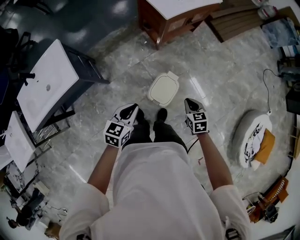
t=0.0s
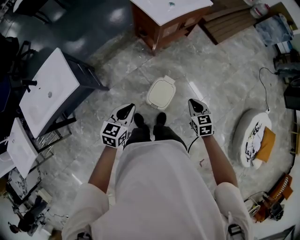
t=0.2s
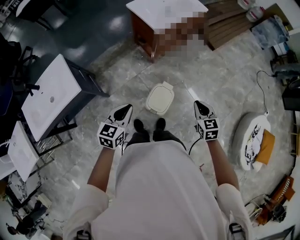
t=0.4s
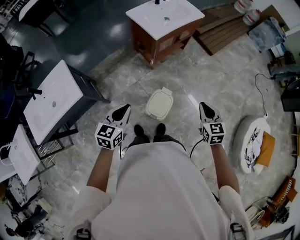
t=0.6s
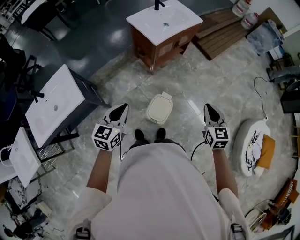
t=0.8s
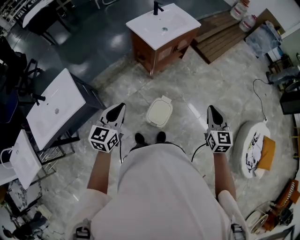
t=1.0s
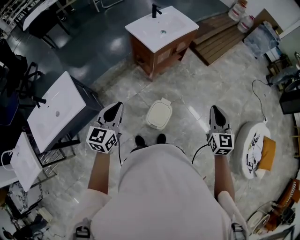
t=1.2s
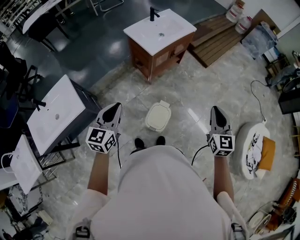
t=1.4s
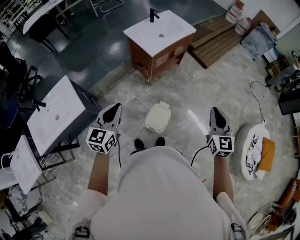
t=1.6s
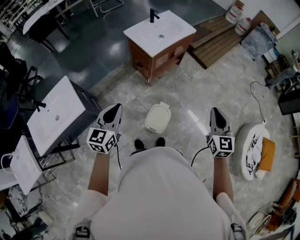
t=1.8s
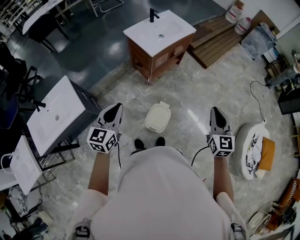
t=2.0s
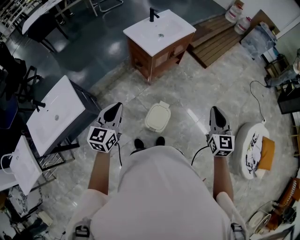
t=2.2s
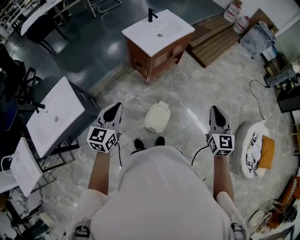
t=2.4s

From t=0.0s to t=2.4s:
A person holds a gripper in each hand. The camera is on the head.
From t=0.0s to t=1.2s: Both grippers travel together upward, approximately 25 cm. The right gripper tips its fingers upward by about 30 degrees. Meanwhile the left gripper changes its angle by approximately 20 degrees.
From t=1.2s to t=2.4s: The grippers move only a little.

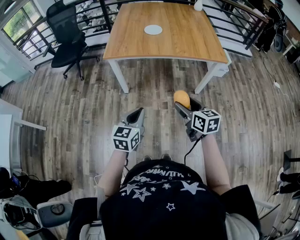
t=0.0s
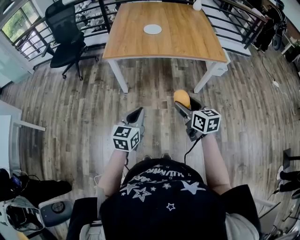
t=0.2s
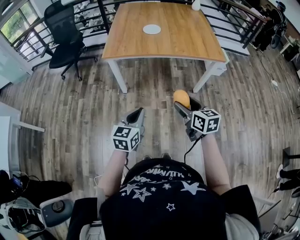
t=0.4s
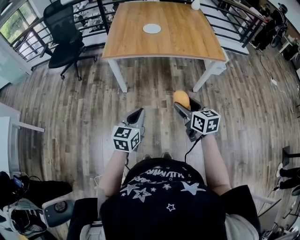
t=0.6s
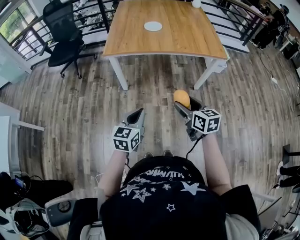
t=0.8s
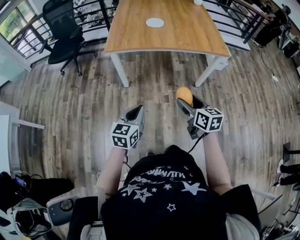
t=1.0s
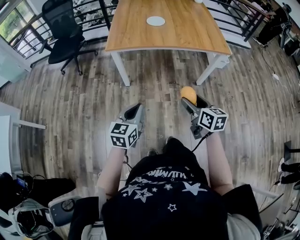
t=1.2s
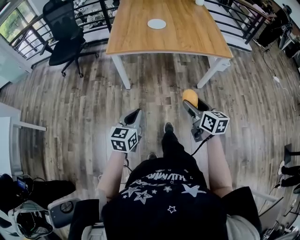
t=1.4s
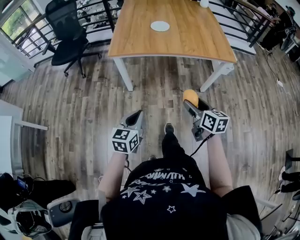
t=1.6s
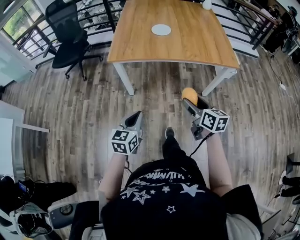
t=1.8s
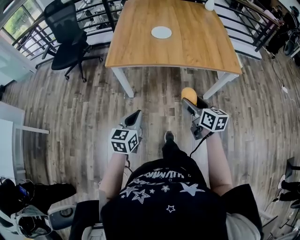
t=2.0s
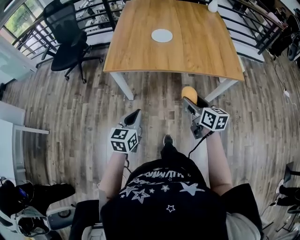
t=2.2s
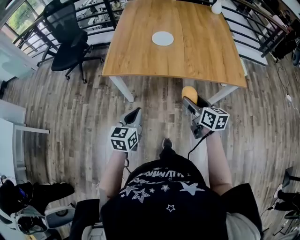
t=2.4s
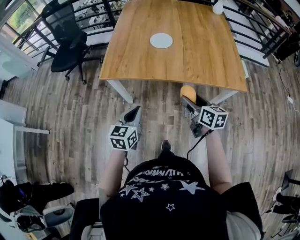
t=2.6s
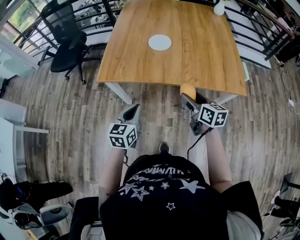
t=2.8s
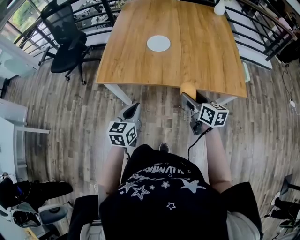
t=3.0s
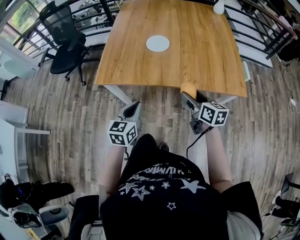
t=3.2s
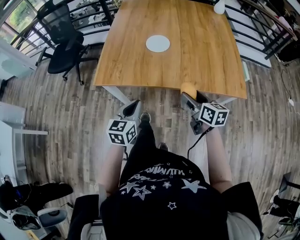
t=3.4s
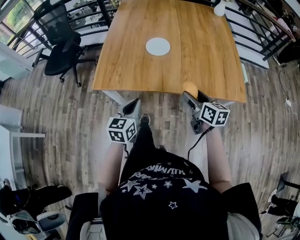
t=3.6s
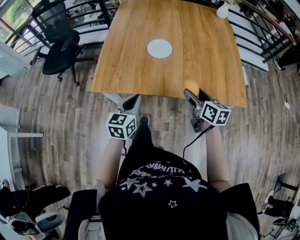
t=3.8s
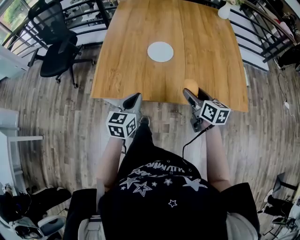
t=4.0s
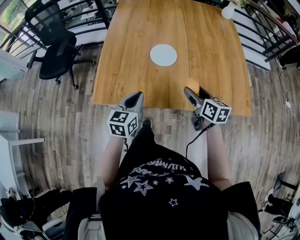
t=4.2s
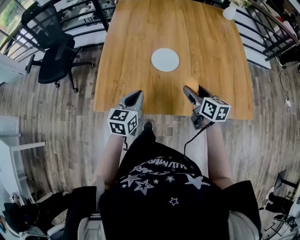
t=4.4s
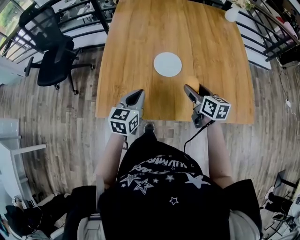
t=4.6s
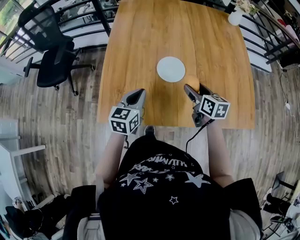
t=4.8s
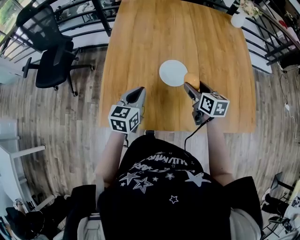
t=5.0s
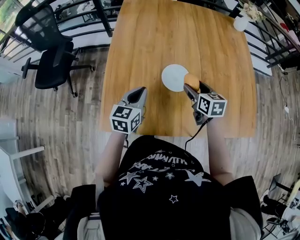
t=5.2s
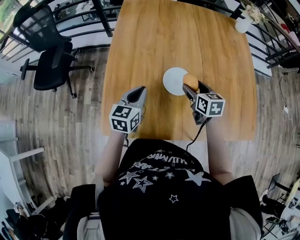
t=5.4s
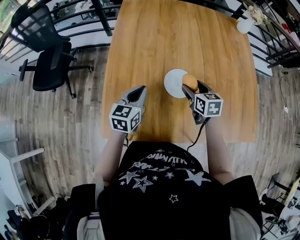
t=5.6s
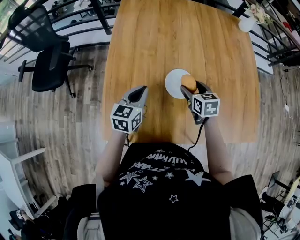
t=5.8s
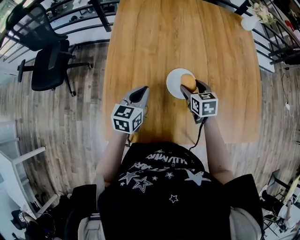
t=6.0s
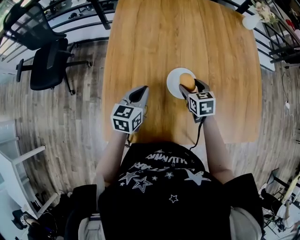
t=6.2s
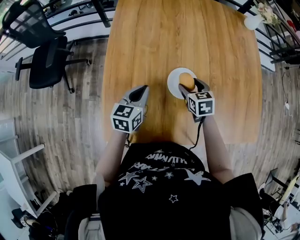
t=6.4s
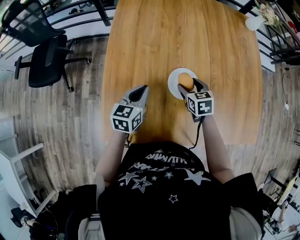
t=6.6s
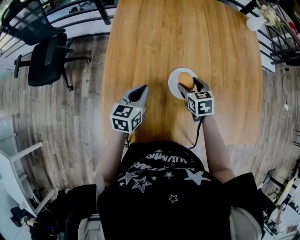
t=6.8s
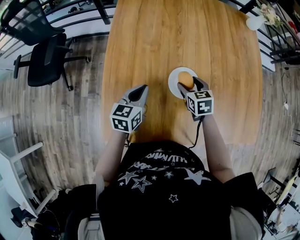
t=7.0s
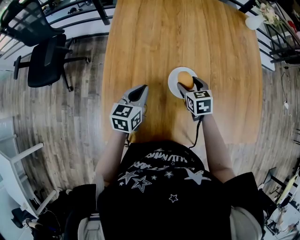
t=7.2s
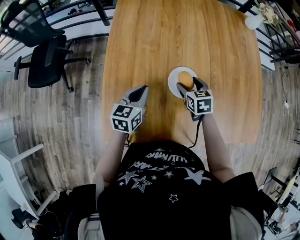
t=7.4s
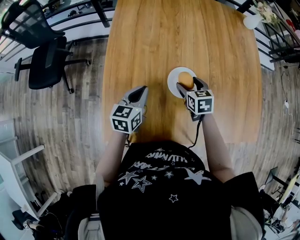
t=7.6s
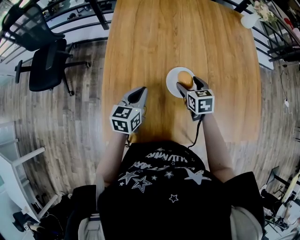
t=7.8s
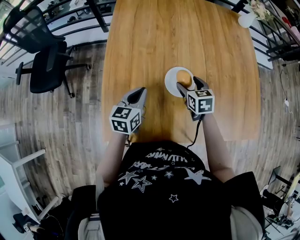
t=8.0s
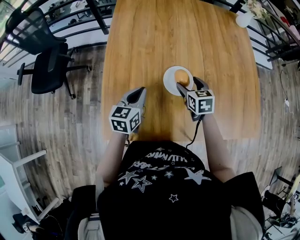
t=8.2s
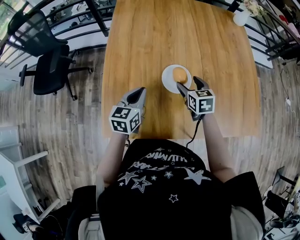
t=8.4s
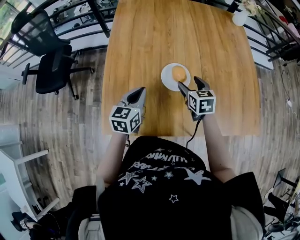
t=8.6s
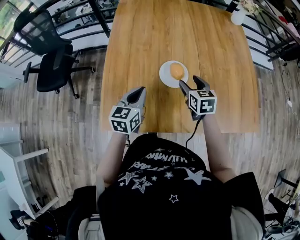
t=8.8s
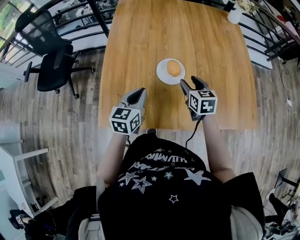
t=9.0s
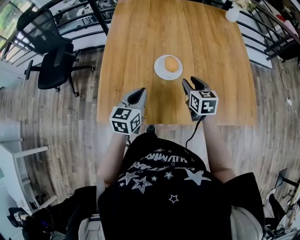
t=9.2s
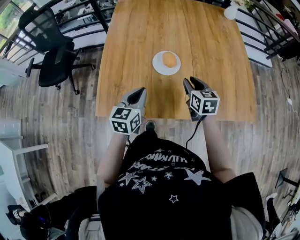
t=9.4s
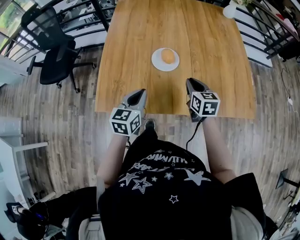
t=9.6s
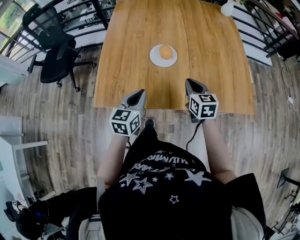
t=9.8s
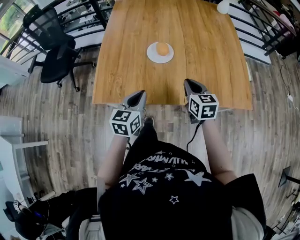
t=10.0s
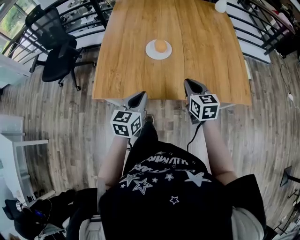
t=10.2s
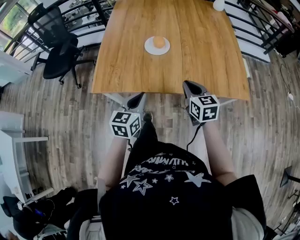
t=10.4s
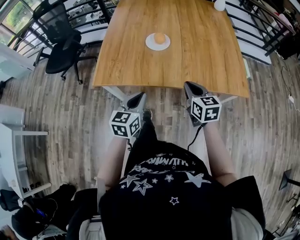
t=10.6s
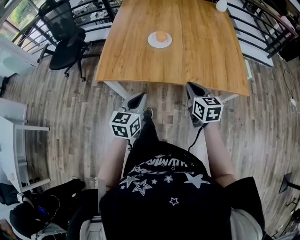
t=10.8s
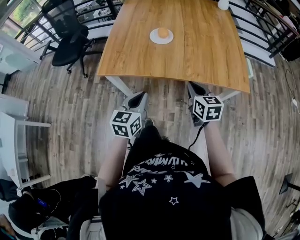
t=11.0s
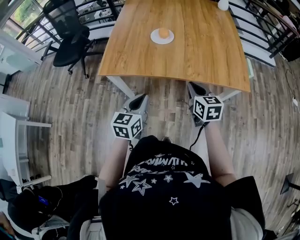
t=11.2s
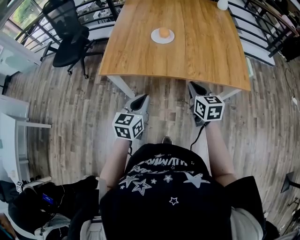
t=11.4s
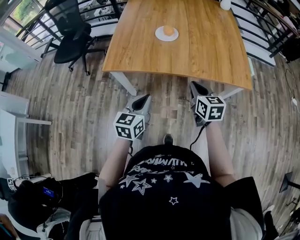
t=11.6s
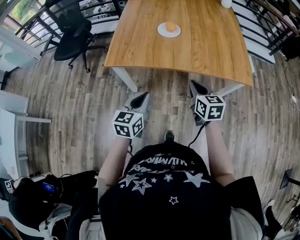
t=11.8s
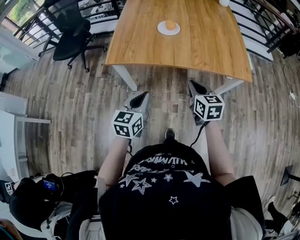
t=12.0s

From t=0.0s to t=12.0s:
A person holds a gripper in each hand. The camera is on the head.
From t=0.0s to t=1.6s: The left gripper heads to the left, covering approximately 5 cm.
From t=1.6s to t=3.0s: Both grippers travel together forward, approximately 30 cm.
From t=3.0s to t=4.4s: The two grippers go about 20 cm forward.
From t=4.4s to t=6.0s: The left gripper travels forward by approximately 20 cm. Meanwhile the right gripper goes about 20 cm forward, to the left and downward, and swivels some 30 degrees.
From t=6.0s to t=7.6s: The grippers stay close to where they were, moving slightly.
From t=7.6s to t=9.0s: The grippers both shift backward, upward and to the right by roughly 10 cm. The right gripper closes.
From t=9.0s to t=10.4s: The right gripper heads backward, covering some 20 cm, and closes its fingers. Meanwhile the left gripper goes roughly 20 cm backward and to the right.
From t=10.4s to t=12.0s: Both grippers travel together backward, about 15 cm.

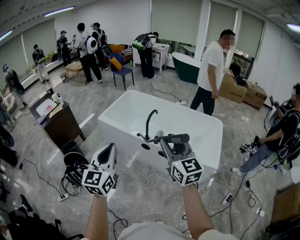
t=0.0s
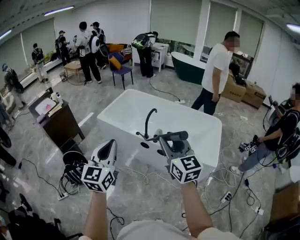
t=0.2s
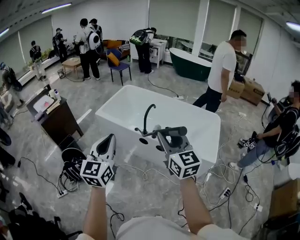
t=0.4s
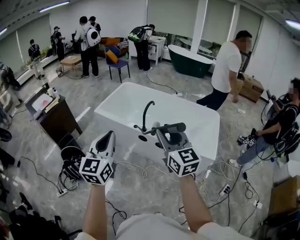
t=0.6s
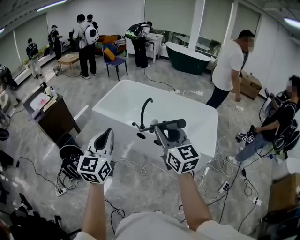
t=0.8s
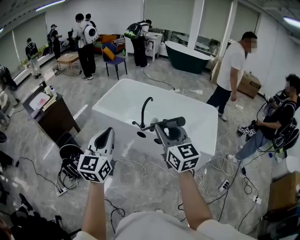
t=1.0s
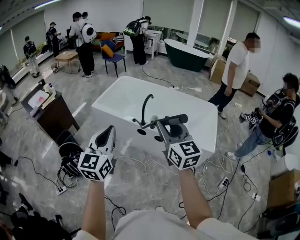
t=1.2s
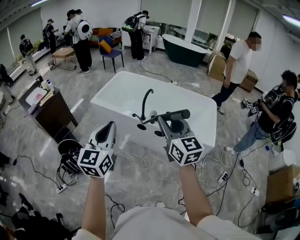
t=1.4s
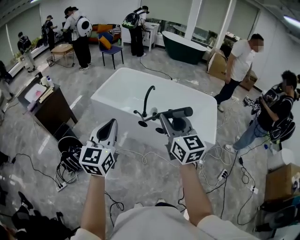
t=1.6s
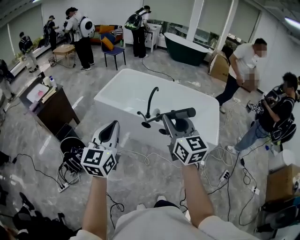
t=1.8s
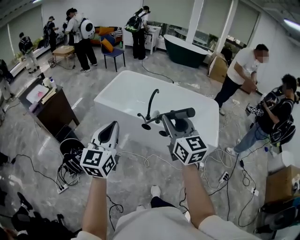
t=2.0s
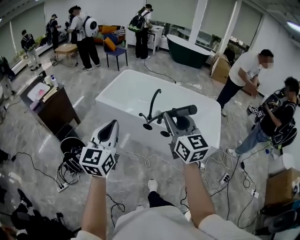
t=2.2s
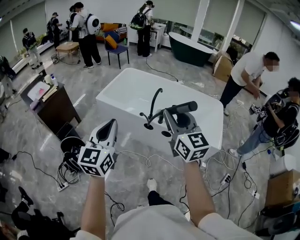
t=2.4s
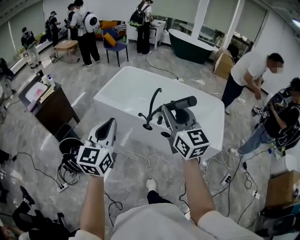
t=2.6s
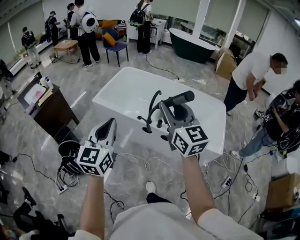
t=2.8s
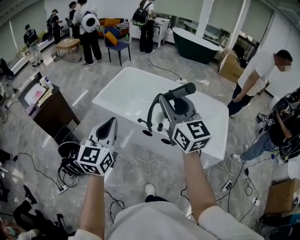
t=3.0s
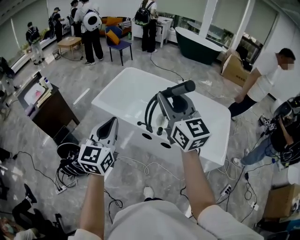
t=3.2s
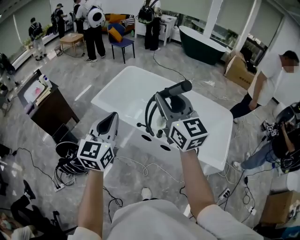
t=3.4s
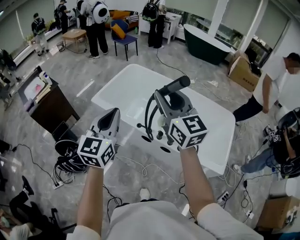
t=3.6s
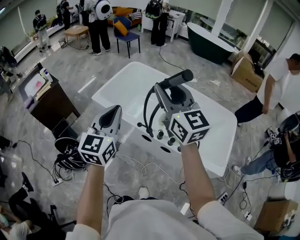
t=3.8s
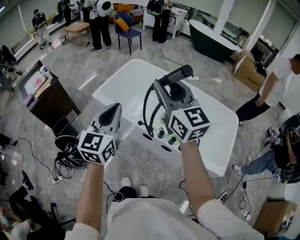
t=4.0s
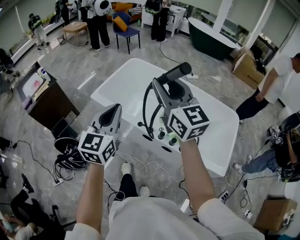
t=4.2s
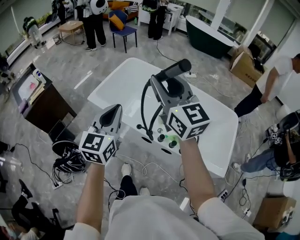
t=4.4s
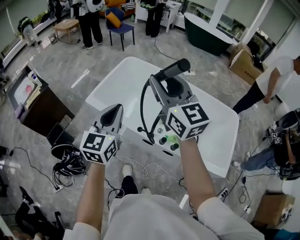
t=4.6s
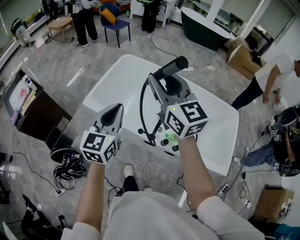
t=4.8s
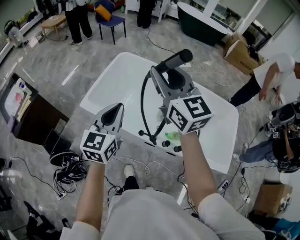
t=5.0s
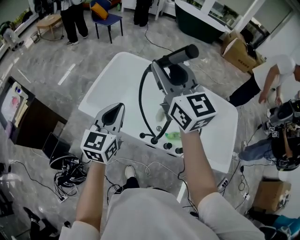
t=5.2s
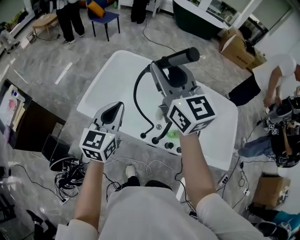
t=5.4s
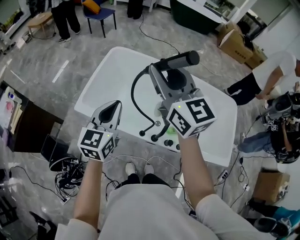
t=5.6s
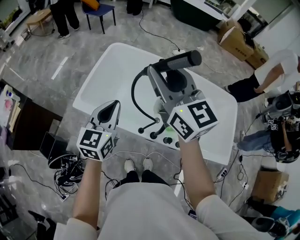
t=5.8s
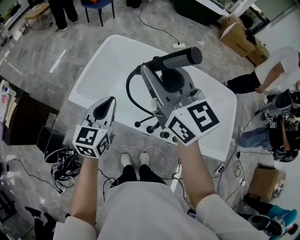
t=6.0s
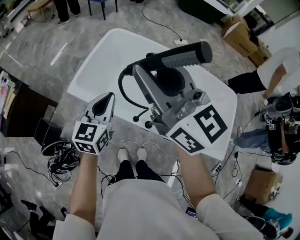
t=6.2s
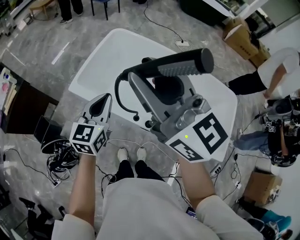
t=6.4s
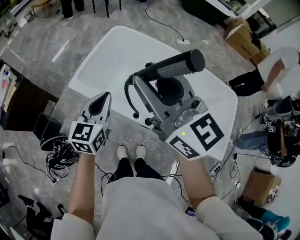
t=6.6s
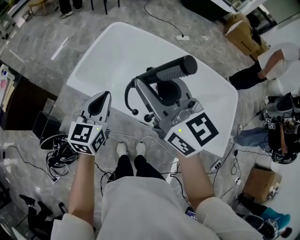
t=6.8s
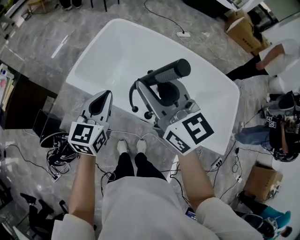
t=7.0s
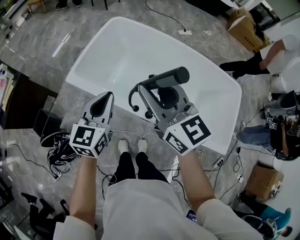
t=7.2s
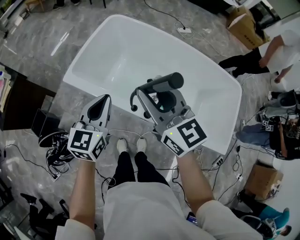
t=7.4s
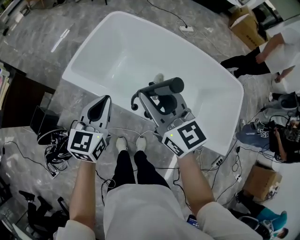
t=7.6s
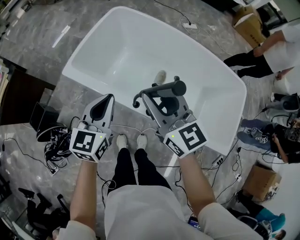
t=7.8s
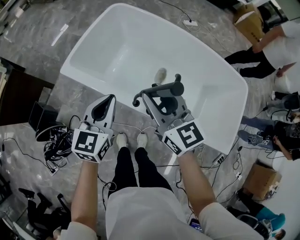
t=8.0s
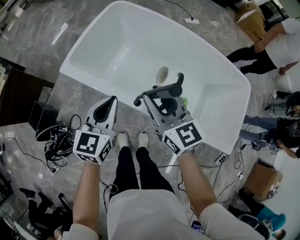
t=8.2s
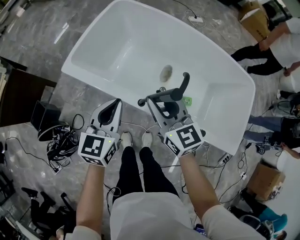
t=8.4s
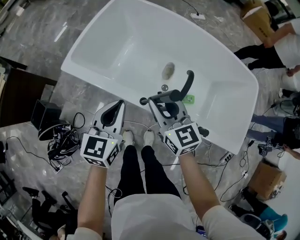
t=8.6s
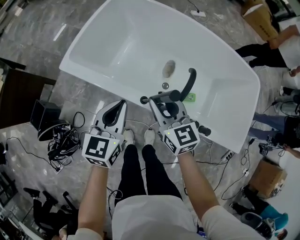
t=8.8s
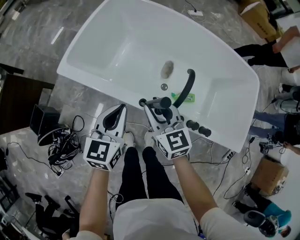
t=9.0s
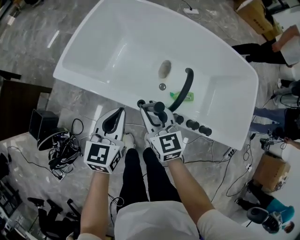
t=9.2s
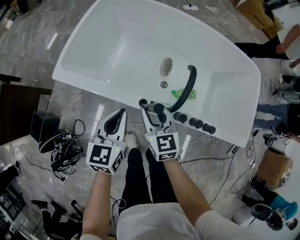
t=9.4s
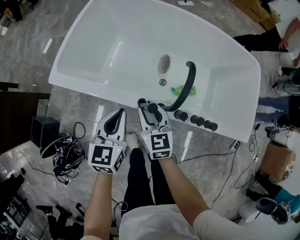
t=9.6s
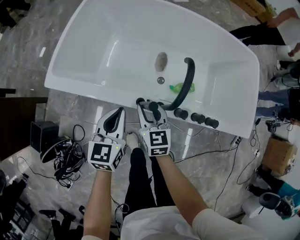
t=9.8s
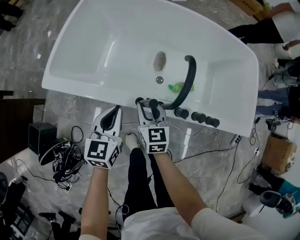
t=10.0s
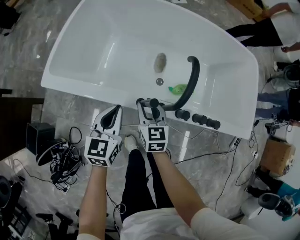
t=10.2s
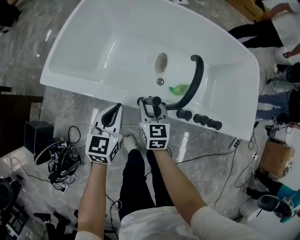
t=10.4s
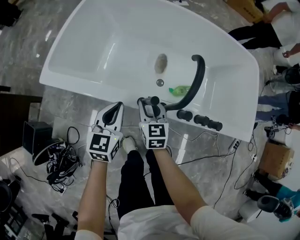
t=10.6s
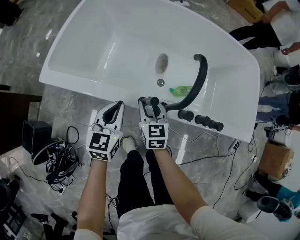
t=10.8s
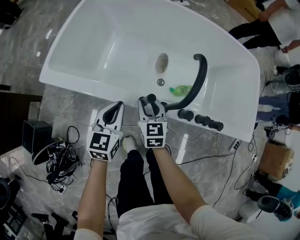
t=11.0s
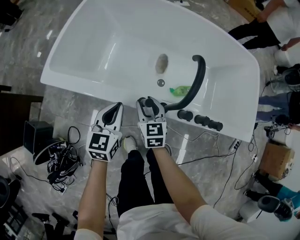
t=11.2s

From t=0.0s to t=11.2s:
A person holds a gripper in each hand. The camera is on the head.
From t=0.0s to t=1.6s: The grippers both shift to the left by roughly 5 cm.
From t=1.6s to t=3.2s: Both grippers move forward, about 20 cm.
From t=3.2s to t=4.8s: Both grippers move forward, roughly 30 cm.
From t=4.8s to t=6.4s: The left gripper goes some 15 cm downward and forward; the right gripper moves to the left, roughly 5 cm, and travels forward and back again, approximately 10 cm each way.
From t=6.4s to t=8.0s: The left gripper moves downward, some 10 cm, while the right gripper goes approximately 25 cm downward.
From t=8.0s to t=9.6s: The right gripper is displaced downward by roughly 25 cm, and changes its angle by roughly 30 degrees, while the left gripper shifts about 15 cm downward.
From t=9.6s to t=11.2s: Both grippers move downward, approximately 10 cm.
